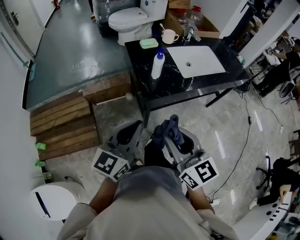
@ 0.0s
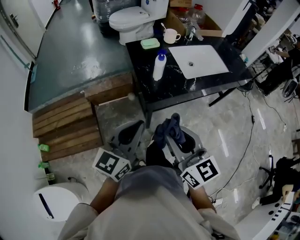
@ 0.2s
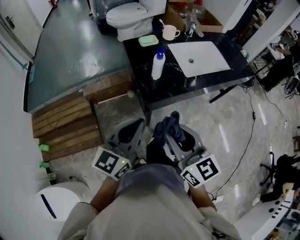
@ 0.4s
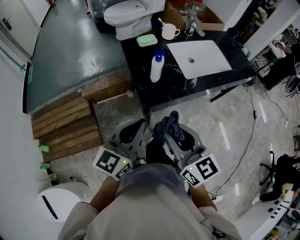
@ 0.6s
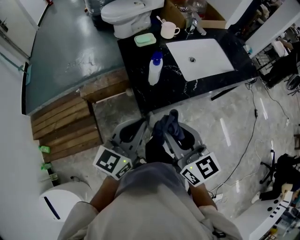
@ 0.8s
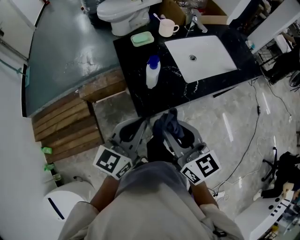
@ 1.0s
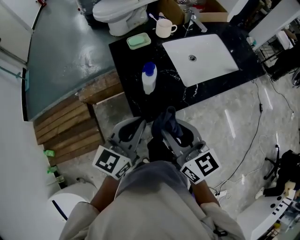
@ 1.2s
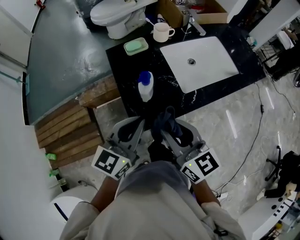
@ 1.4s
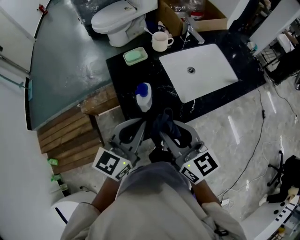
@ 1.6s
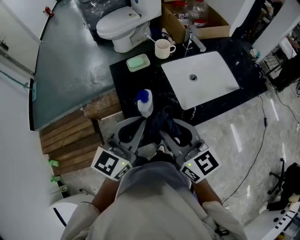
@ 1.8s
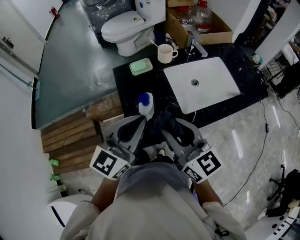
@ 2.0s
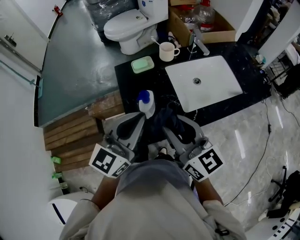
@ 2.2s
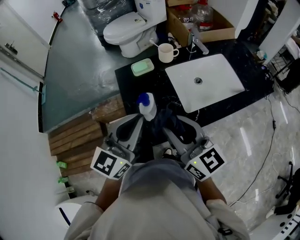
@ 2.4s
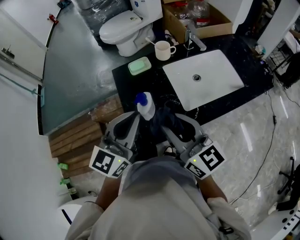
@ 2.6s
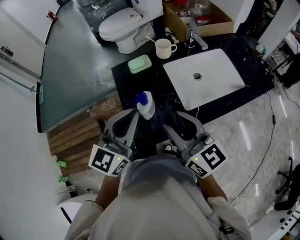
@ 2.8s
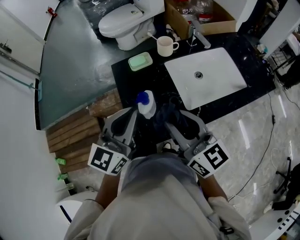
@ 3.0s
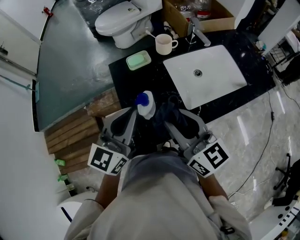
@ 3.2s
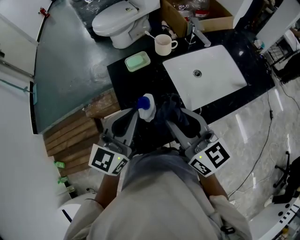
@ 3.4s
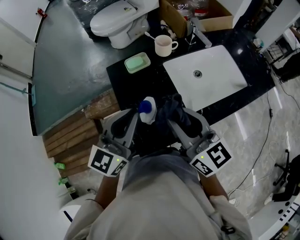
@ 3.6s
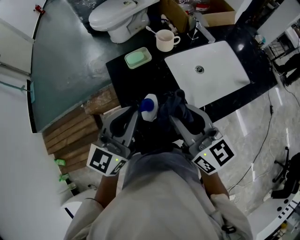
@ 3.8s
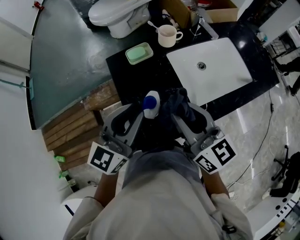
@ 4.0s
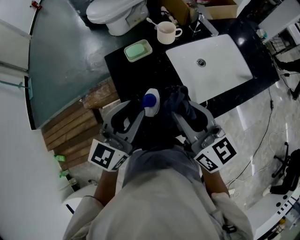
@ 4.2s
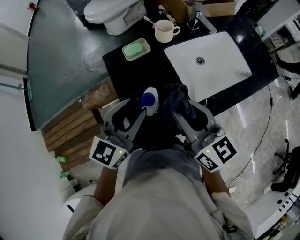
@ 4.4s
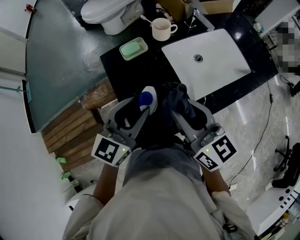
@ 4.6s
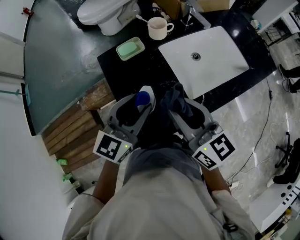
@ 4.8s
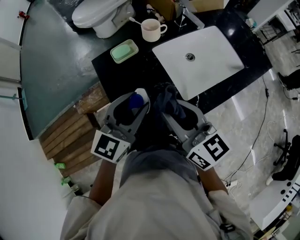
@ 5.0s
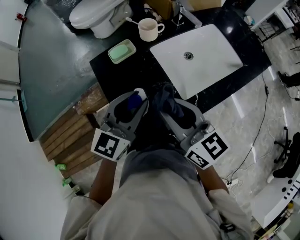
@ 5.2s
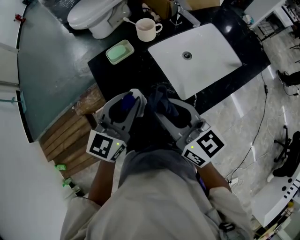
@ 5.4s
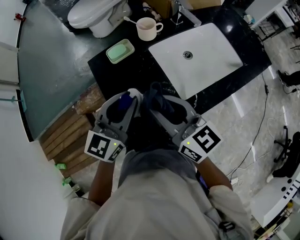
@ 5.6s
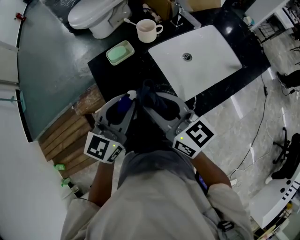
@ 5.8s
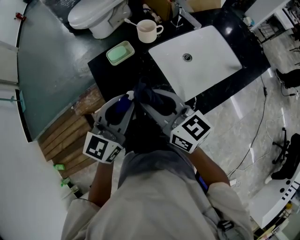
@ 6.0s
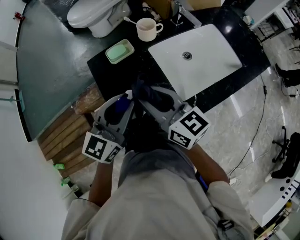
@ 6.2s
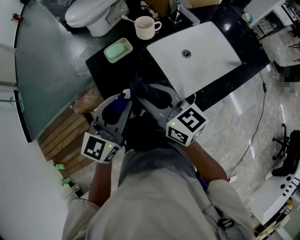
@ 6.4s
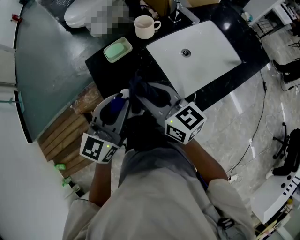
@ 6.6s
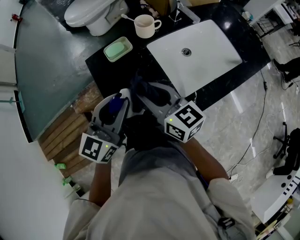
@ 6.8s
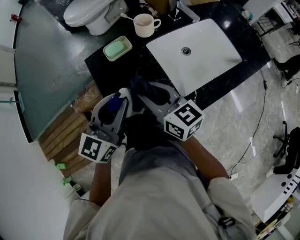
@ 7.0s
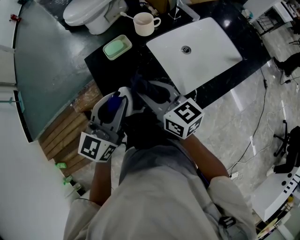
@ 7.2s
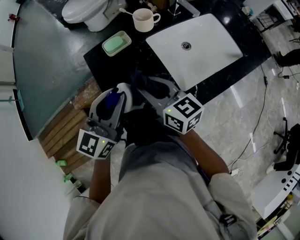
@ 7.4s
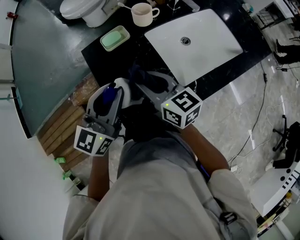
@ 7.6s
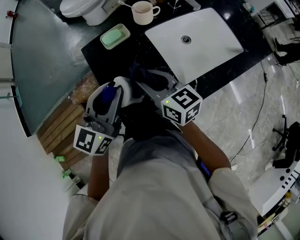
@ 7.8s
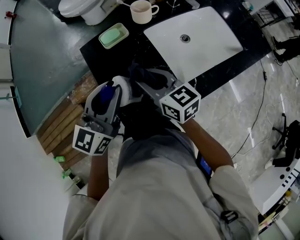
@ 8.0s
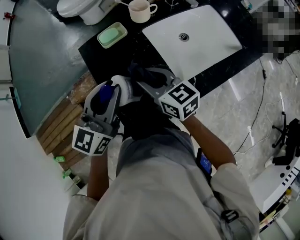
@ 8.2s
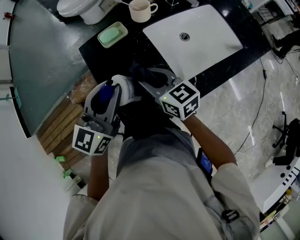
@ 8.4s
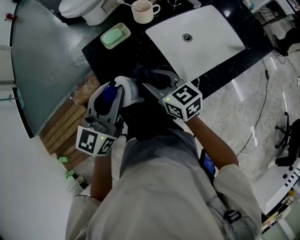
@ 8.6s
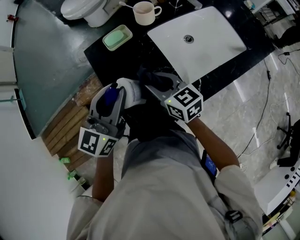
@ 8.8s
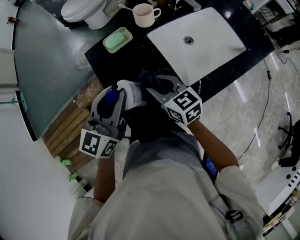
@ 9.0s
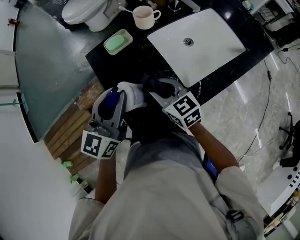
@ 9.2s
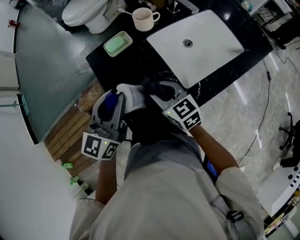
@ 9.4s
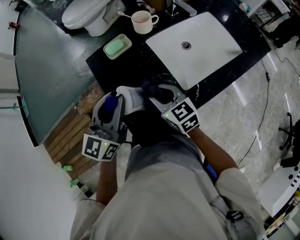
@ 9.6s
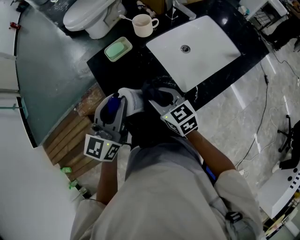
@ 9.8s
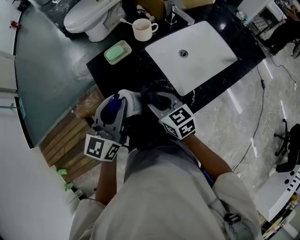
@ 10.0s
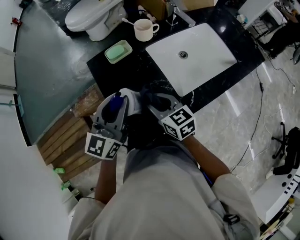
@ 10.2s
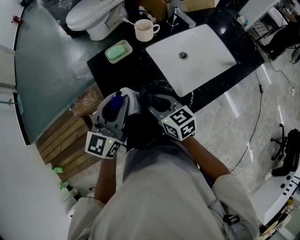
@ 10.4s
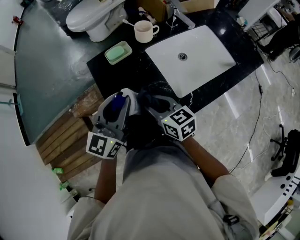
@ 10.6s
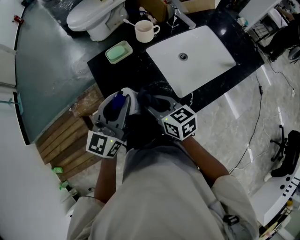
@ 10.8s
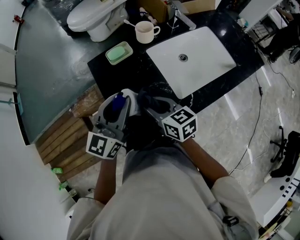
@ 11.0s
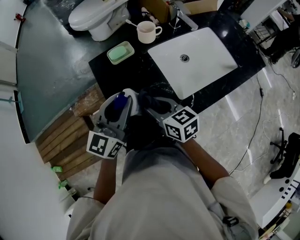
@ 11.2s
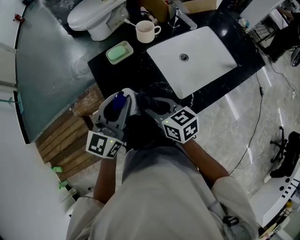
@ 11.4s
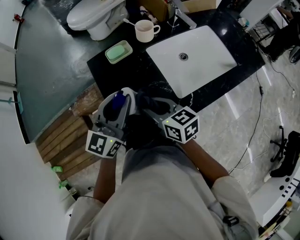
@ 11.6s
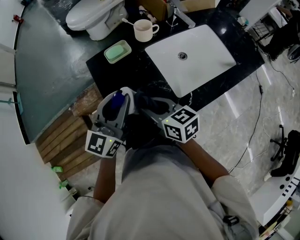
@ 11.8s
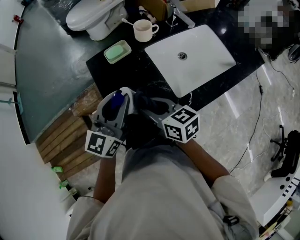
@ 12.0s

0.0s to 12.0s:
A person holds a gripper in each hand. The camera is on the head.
0.0s to 1.6s: Both grippers travel together forward, about 25 cm.
1.6s to 3.0s: Both grippers move forward, about 5 cm.
3.0s to 4.4s: The left gripper goes roughly 5 cm downward, and opens up, while the right gripper moves approximately 5 cm.
4.4s to 6.0s: The right gripper ends up roughly 5 cm from where it was.
6.0s to 7.6s: The right gripper goes about 5 cm downward.
7.6s to 9.0s: The right gripper shifts approximately 5 cm downward.
9.0s to 10.4s: There are only small adjustments of the grippers.
10.4s to 12.0s: The grippers make only small movements.

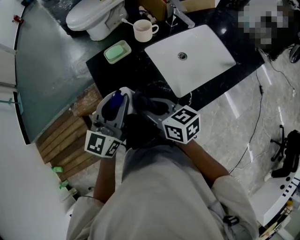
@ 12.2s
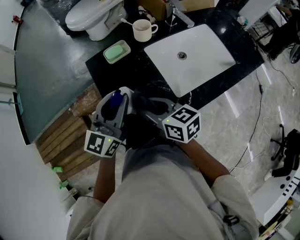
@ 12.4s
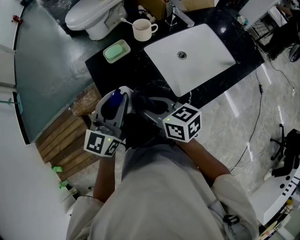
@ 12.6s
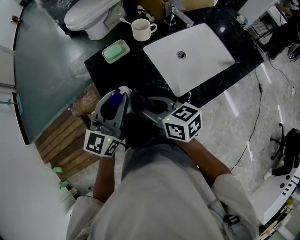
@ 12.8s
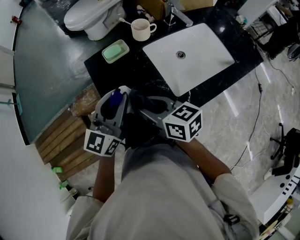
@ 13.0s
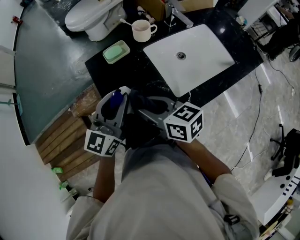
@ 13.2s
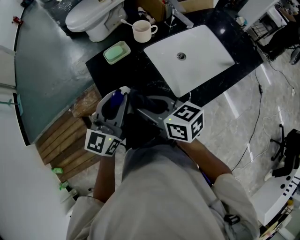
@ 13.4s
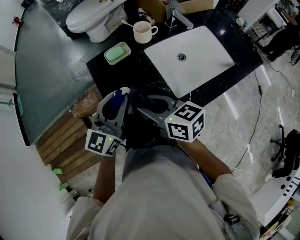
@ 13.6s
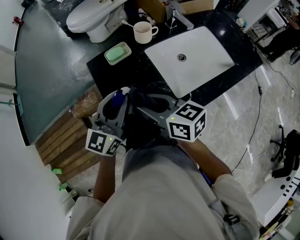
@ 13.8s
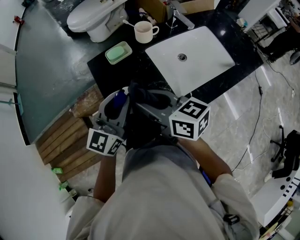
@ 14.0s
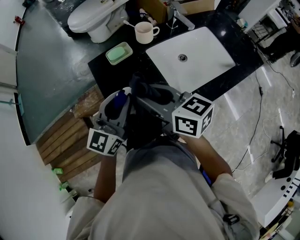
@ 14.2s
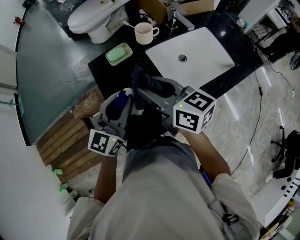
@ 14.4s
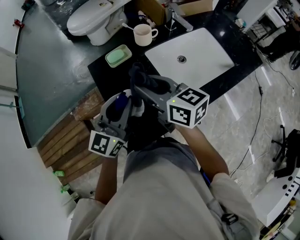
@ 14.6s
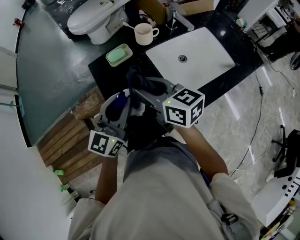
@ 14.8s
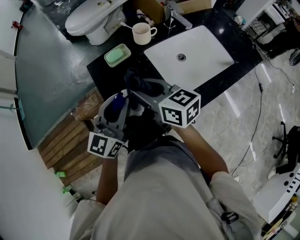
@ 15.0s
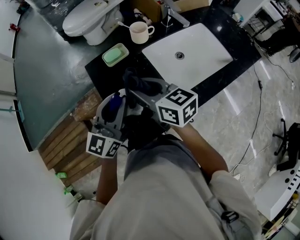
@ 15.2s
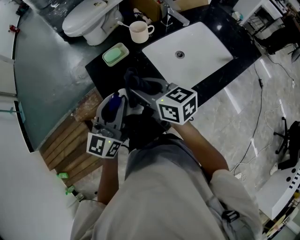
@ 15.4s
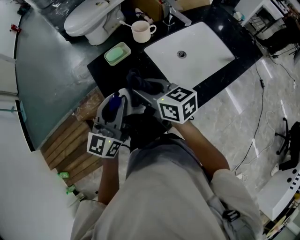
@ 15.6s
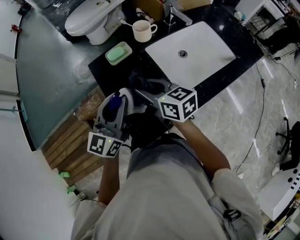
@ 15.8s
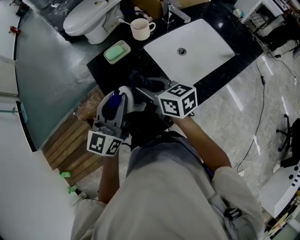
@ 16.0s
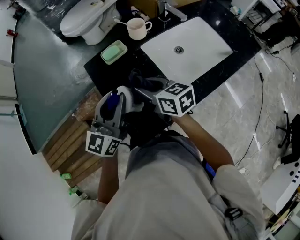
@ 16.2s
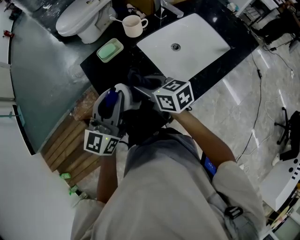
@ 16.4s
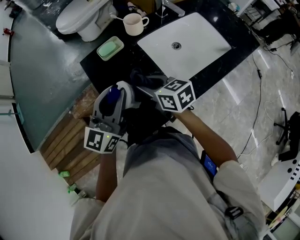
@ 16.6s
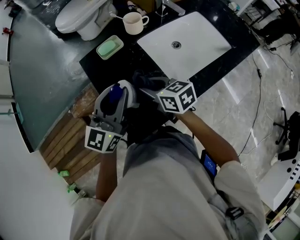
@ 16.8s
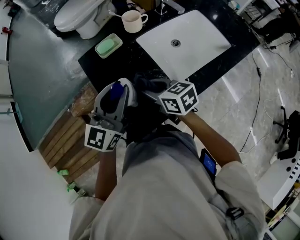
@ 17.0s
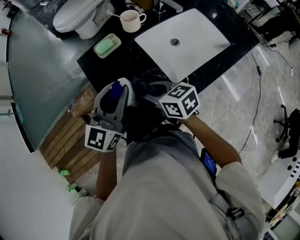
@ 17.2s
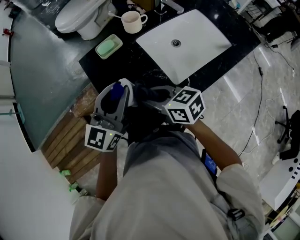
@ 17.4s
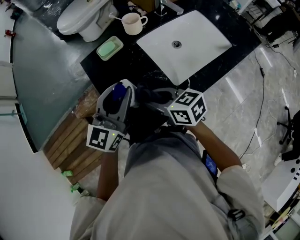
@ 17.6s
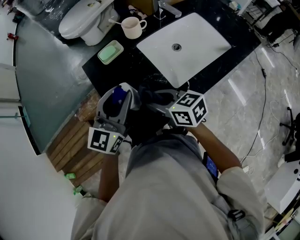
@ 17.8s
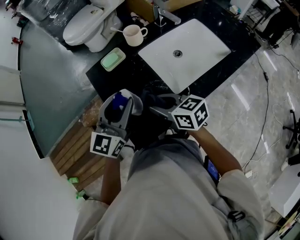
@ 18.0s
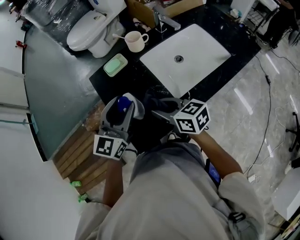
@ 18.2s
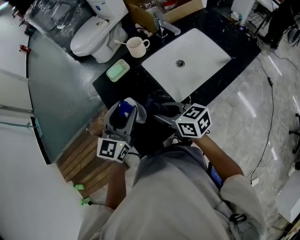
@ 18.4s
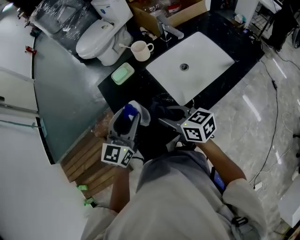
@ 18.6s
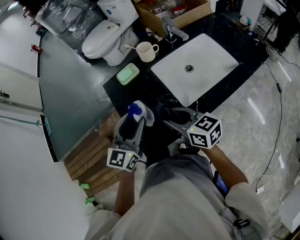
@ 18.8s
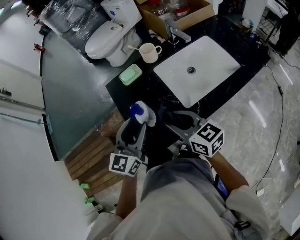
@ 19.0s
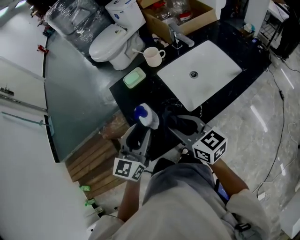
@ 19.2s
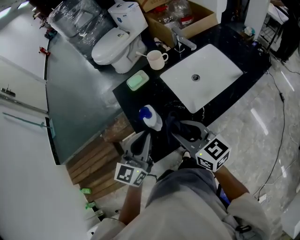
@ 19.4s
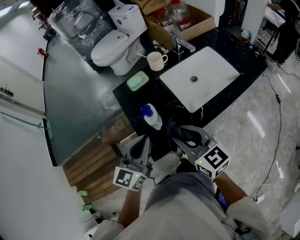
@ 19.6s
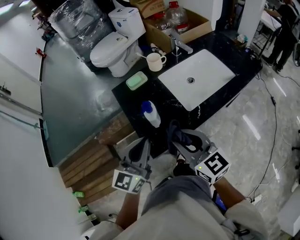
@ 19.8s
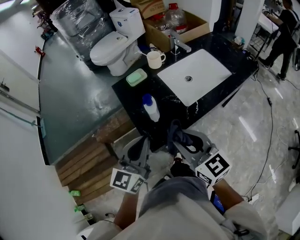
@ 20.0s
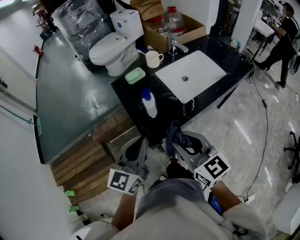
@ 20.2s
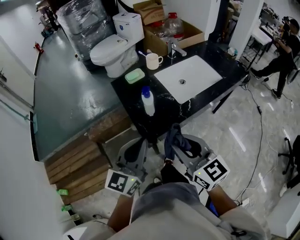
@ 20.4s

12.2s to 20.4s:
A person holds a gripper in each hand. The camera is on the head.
12.2s to 13.8s: The right gripper moves upward, roughly 5 cm.
13.8s to 15.4s: The right gripper shifts about 5 cm forward.
15.4s to 17.2s: The right gripper shifts about 10 cm downward.
17.2s to 18.8s: The right gripper shifts roughly 5 cm upward, while the left gripper opens up.
18.8s to 20.4s: The right gripper goes about 25 cm backward and upward, and rotates approximately 30 degrees. Meanwhile the left gripper goes about 20 cm backward, and closes up.

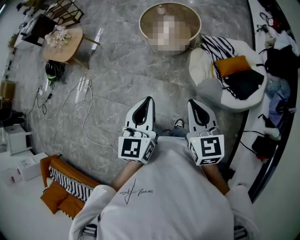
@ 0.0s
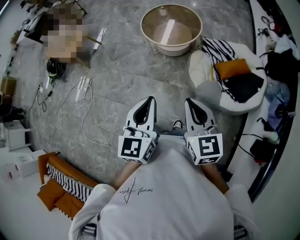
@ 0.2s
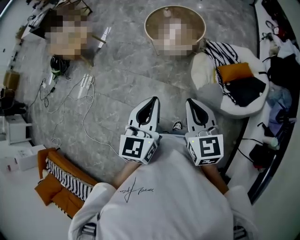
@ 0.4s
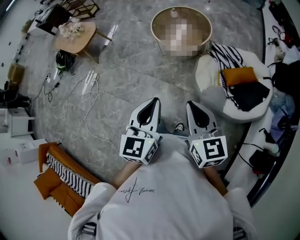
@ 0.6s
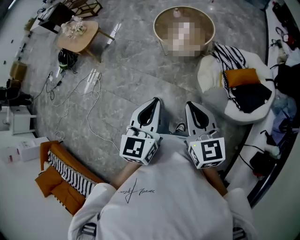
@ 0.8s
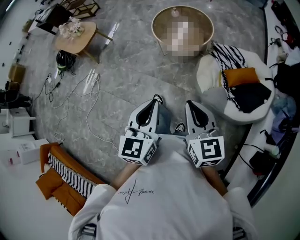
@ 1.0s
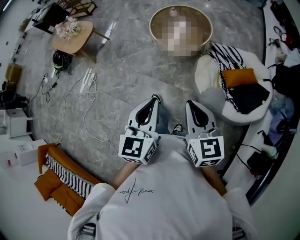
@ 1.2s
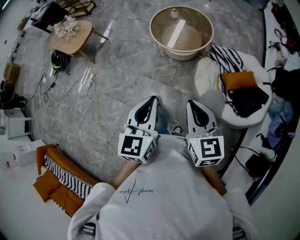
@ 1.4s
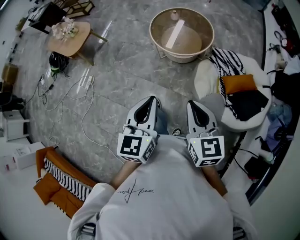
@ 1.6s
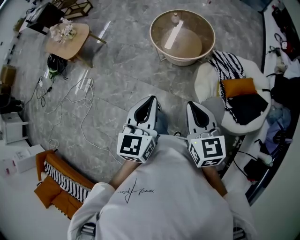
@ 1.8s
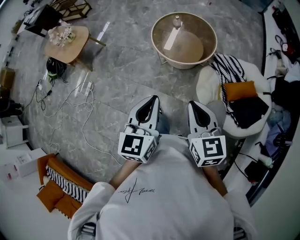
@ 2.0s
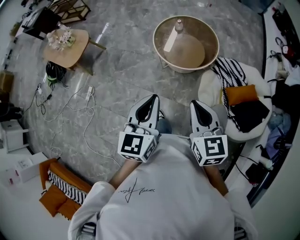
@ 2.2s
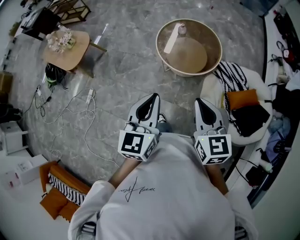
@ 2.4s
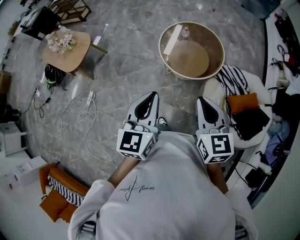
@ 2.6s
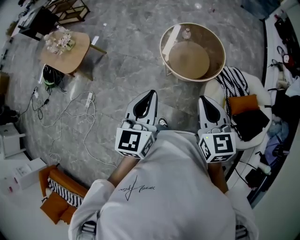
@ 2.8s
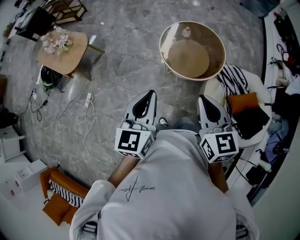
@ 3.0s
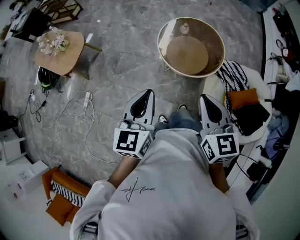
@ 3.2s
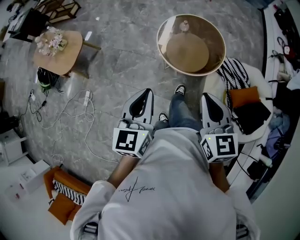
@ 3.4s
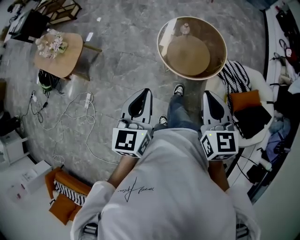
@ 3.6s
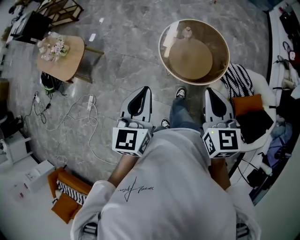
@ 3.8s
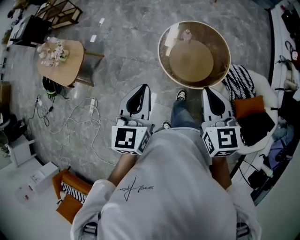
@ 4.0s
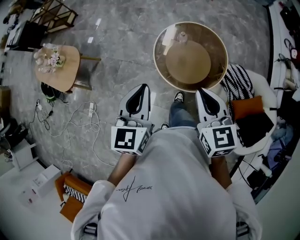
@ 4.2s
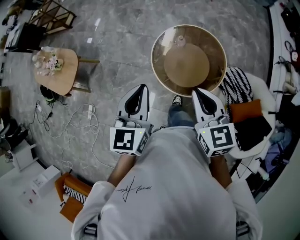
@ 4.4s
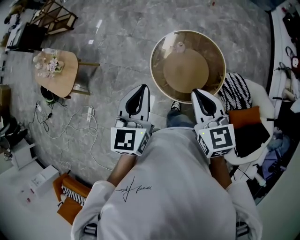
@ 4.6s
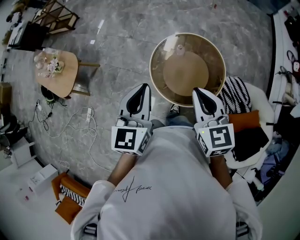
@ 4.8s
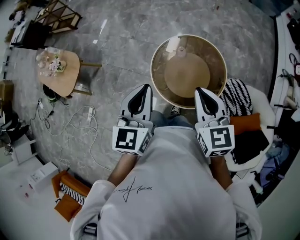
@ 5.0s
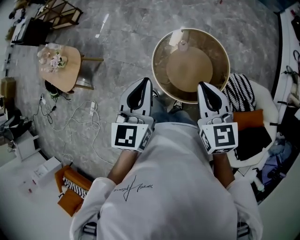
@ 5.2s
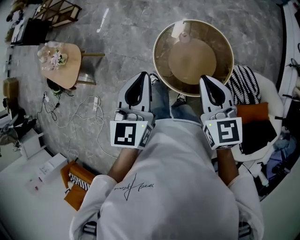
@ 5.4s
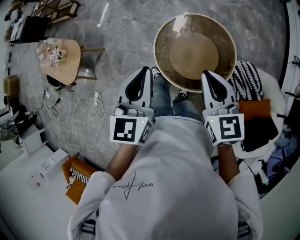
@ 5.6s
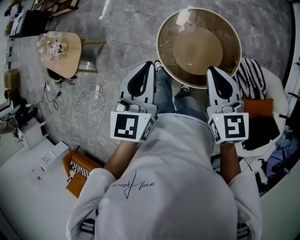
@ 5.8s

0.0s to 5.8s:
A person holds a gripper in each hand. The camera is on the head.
0.0s to 1.4s: Both grippers travel together forward, about 5 cm.
1.4s to 2.8s: The grippers both shift forward and to the left by some 30 cm.
2.8s to 4.4s: Both grippers travel together forward, about 25 cm.
4.4s to 5.8s: The two grippers go about 10 cm forward and to the right.
